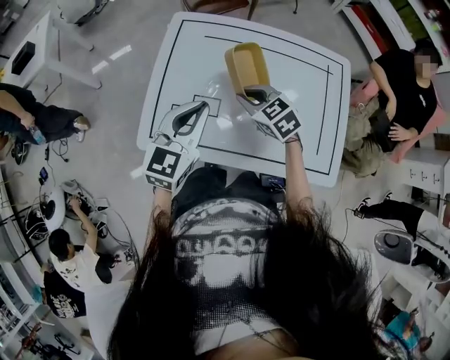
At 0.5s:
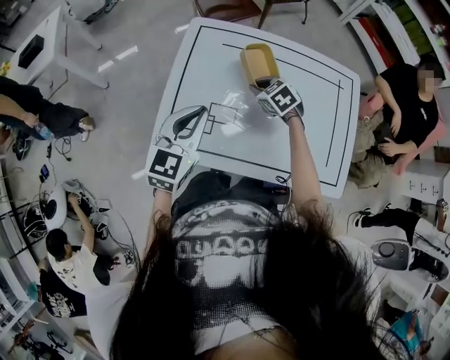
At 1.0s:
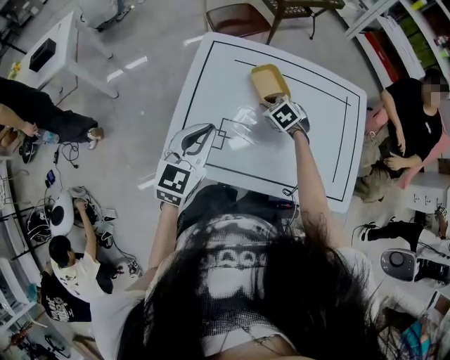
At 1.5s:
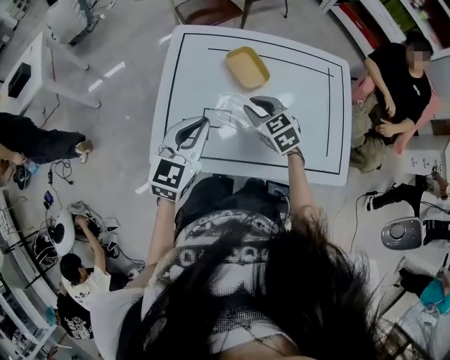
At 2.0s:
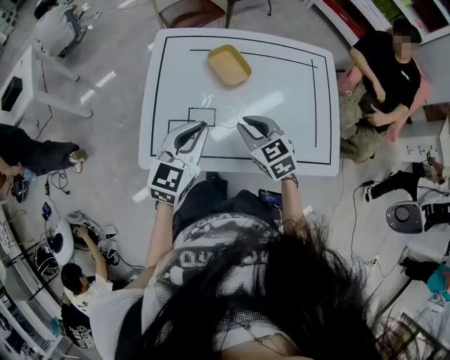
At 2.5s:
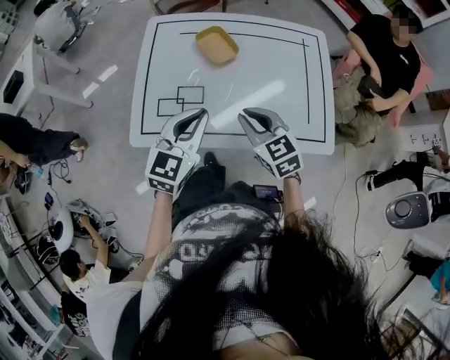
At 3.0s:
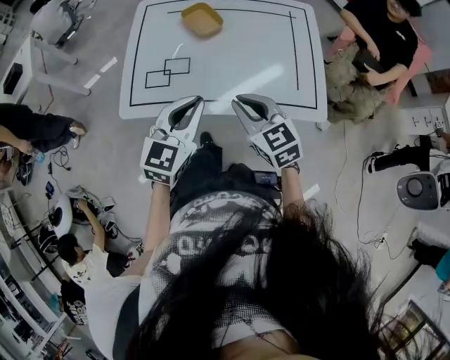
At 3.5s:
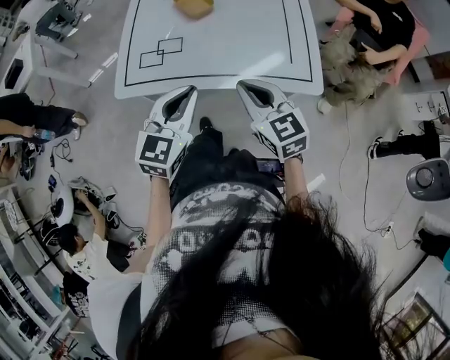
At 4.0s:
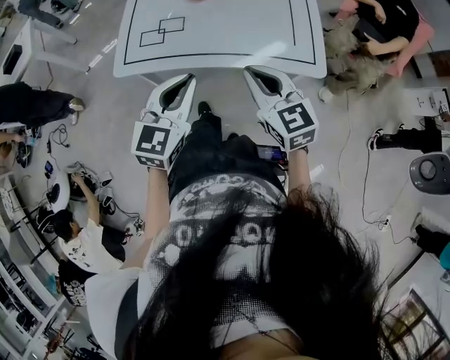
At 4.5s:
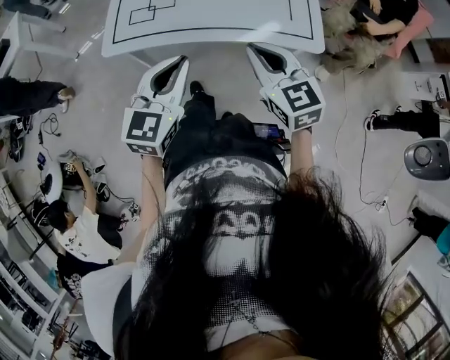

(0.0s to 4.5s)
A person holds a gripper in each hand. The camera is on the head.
0.0s - 2.0s: The right gripper travels backward by some 5 cm. Meanwhile the left gripper moves about 10 cm to the left and comes back.
2.0s - 4.5s: The right gripper travels backward and to the right by about 30 cm. The left gripper travels backward by approximately 30 cm.

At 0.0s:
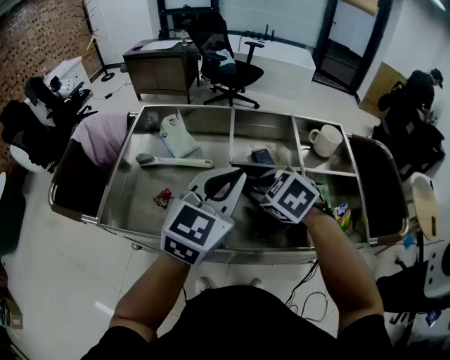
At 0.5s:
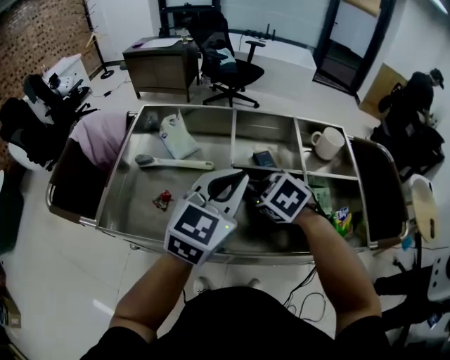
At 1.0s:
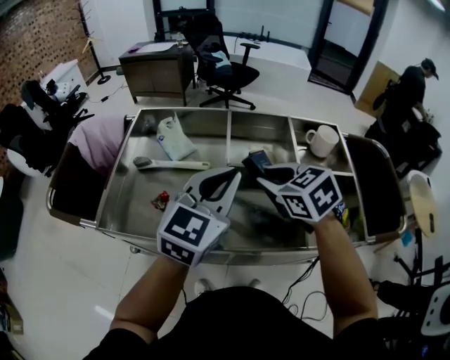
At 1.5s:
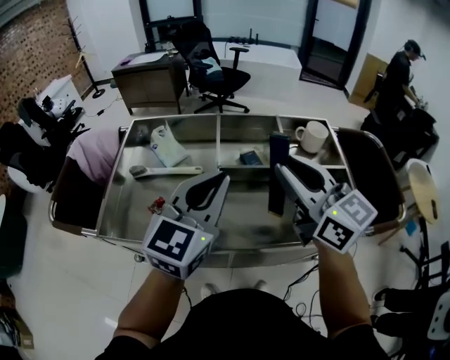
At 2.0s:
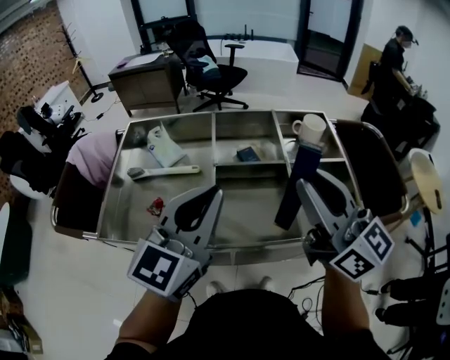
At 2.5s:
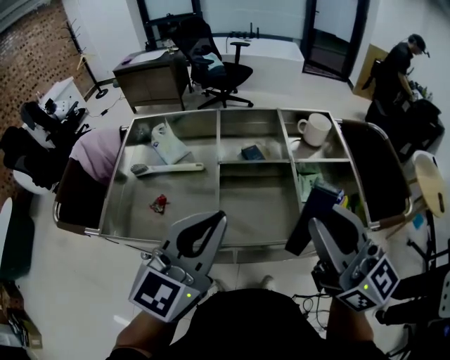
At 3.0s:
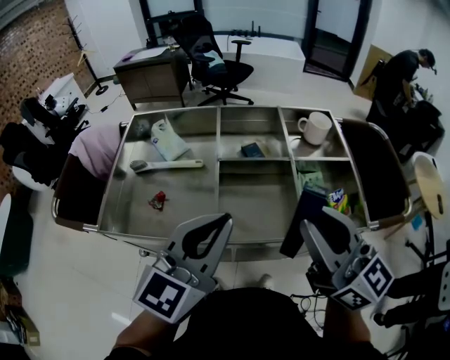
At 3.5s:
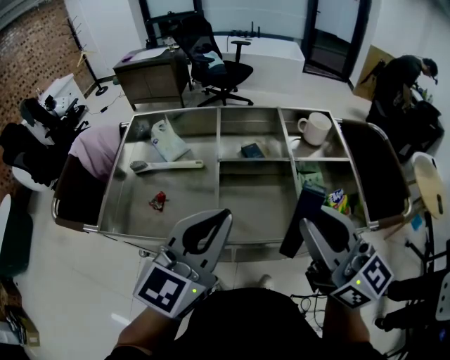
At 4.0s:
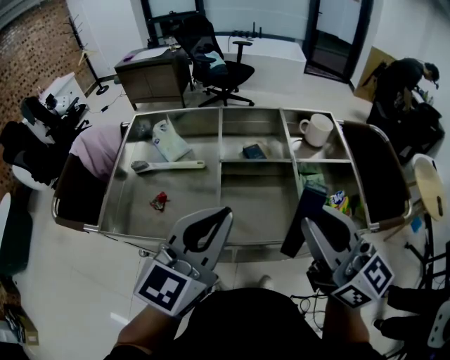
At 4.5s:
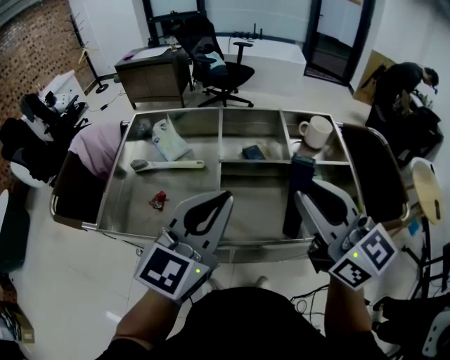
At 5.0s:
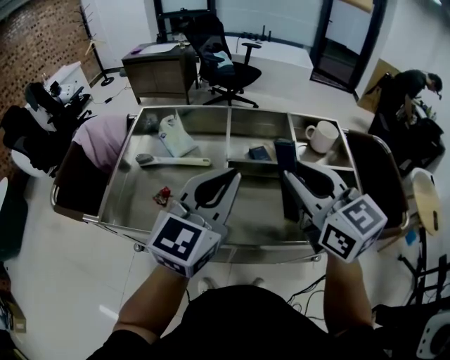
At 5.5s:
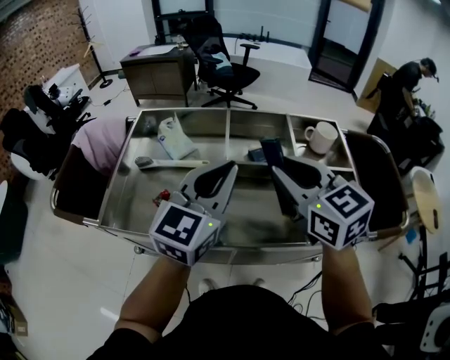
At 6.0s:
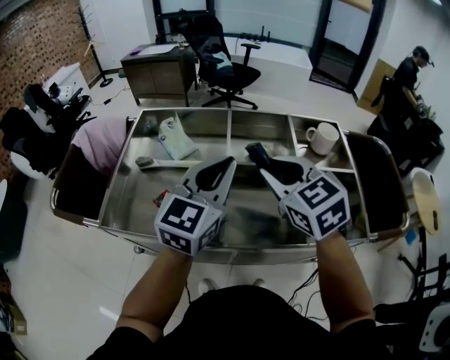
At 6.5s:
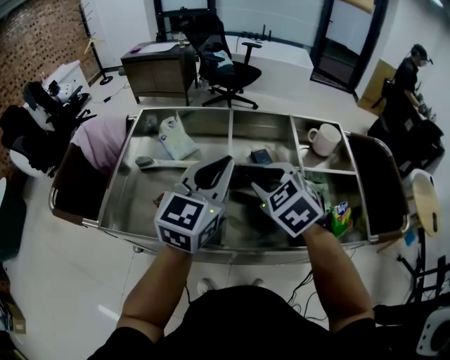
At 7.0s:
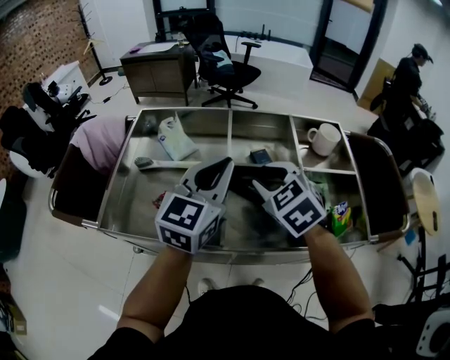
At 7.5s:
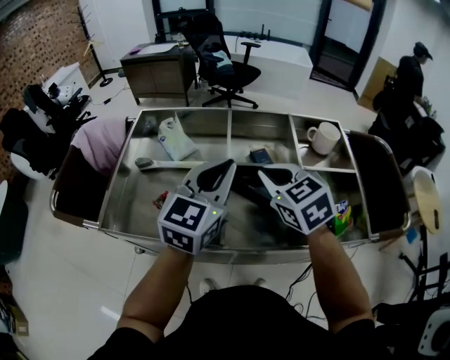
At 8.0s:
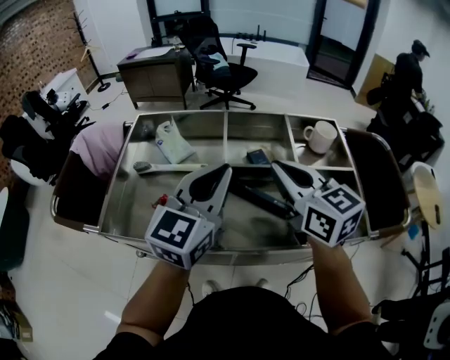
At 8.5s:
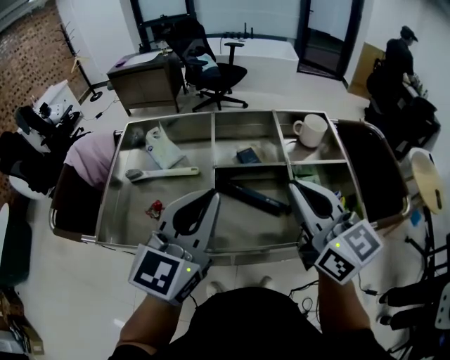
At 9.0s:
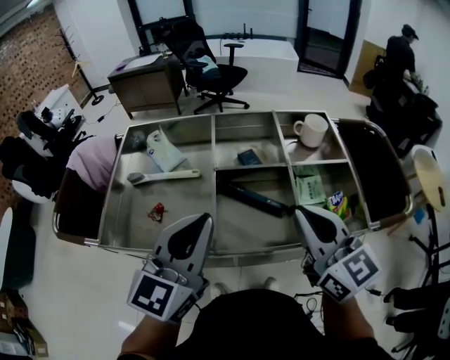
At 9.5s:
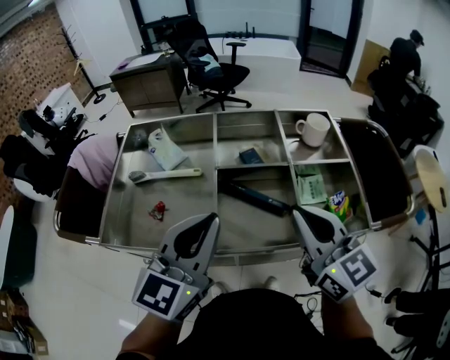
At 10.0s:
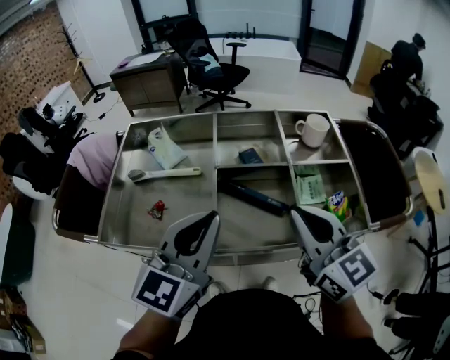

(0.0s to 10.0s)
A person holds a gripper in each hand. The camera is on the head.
0.0s - 2.0s: The right gripper shifts some 25 cm upward, backward and to the right, and tilts its fingers roughly 70 degrees upward. The left gripper travels backward and upward by approximately 10 cm.
2.0s - 4.0s: The right gripper moves approximately 5 cm.
4.0s - 6.0s: The right gripper shifts roughly 20 cm forward, to the left and downward, and tilts its fingers about 30 degrees downward. The left gripper is displaced forward by roughly 10 cm.
6.0s - 8.0s: The right gripper goes downward and returns, about 5 cm each way, changes its angle by about 30 degrees, and closes.
8.0s - 10.0s: The right gripper shifts about 10 cm backward and to the right. Meanwhile the left gripper moves backward, some 10 cm.

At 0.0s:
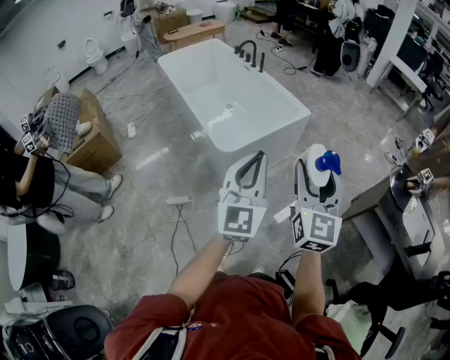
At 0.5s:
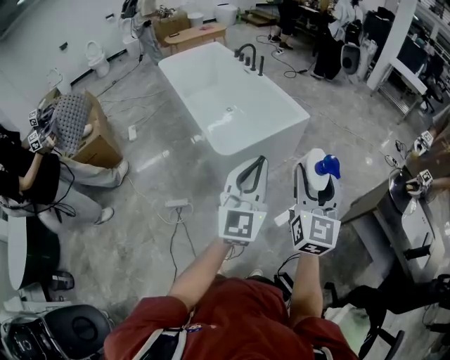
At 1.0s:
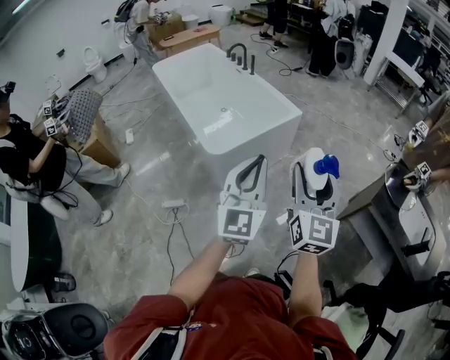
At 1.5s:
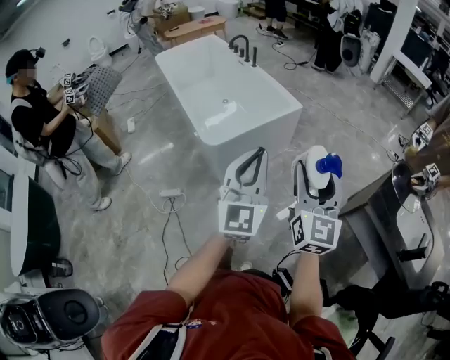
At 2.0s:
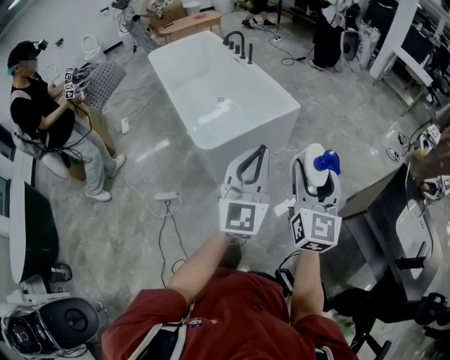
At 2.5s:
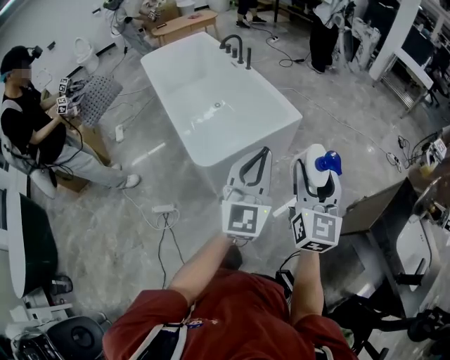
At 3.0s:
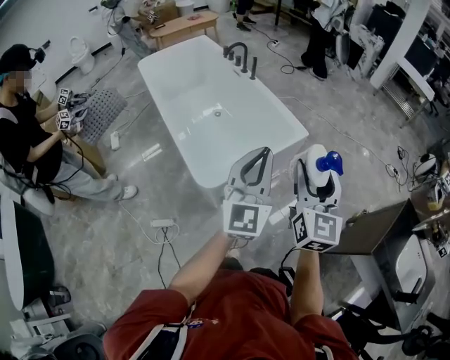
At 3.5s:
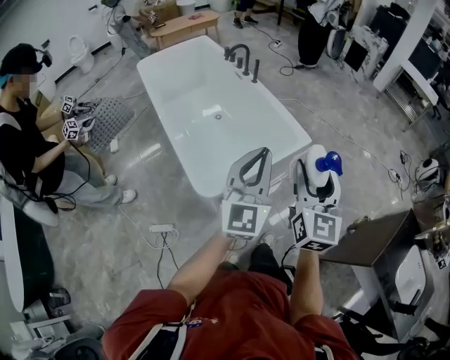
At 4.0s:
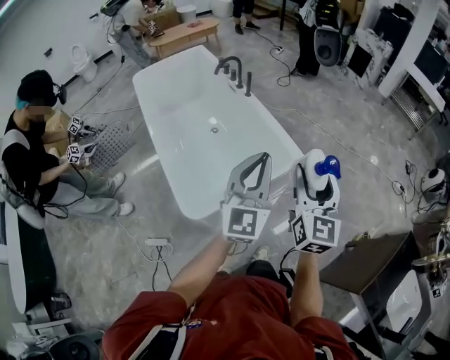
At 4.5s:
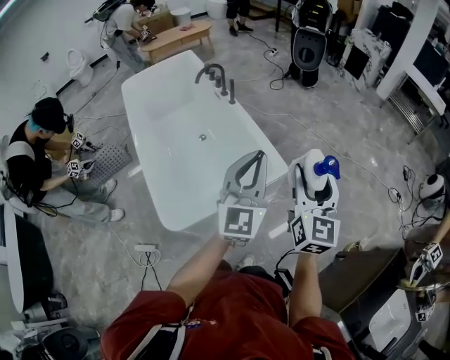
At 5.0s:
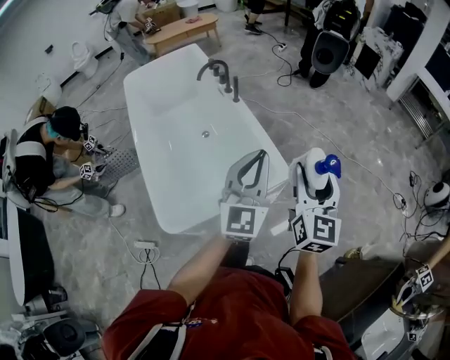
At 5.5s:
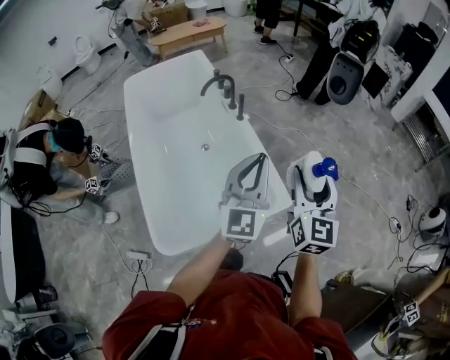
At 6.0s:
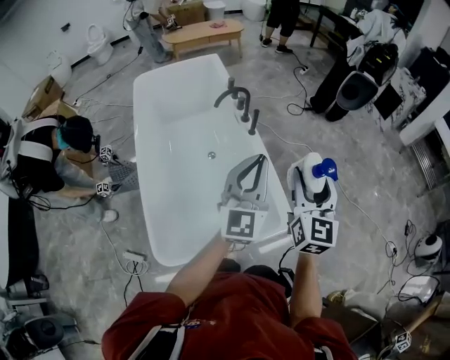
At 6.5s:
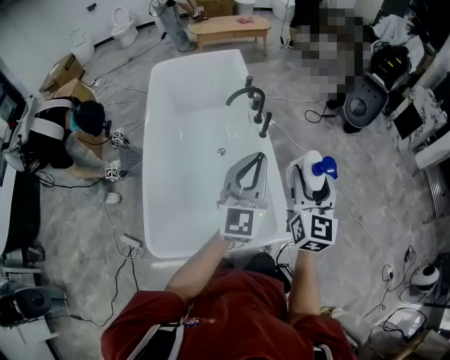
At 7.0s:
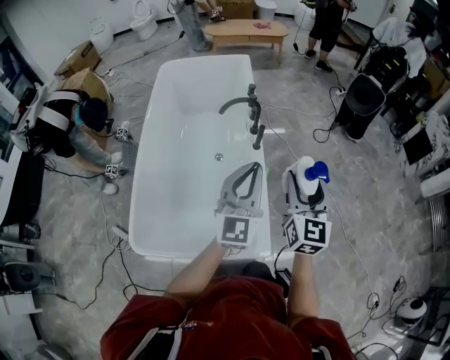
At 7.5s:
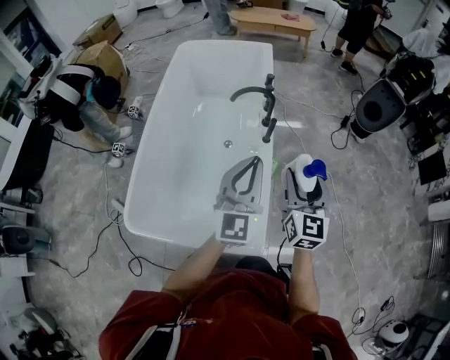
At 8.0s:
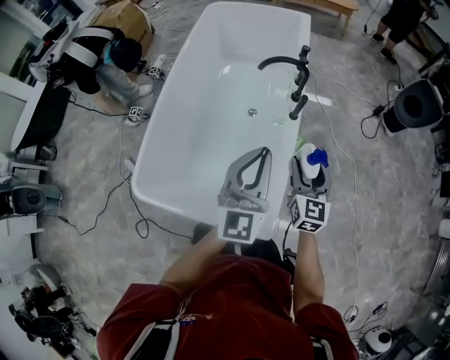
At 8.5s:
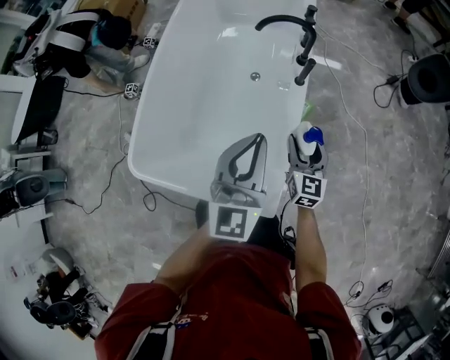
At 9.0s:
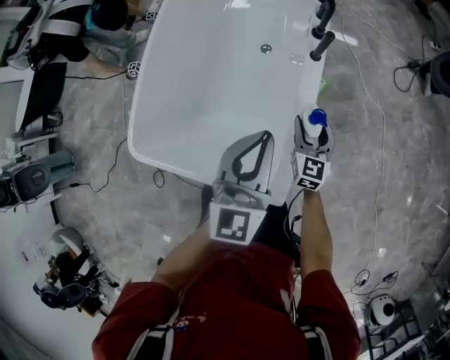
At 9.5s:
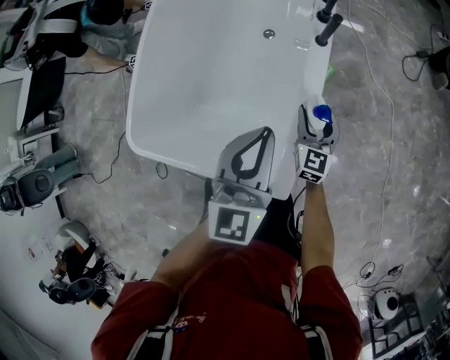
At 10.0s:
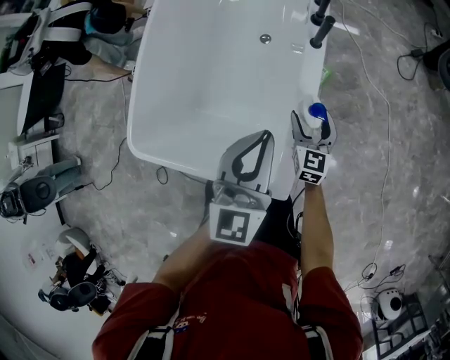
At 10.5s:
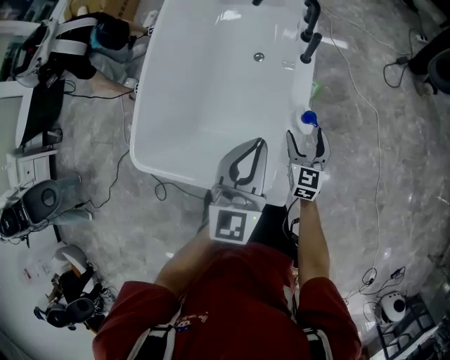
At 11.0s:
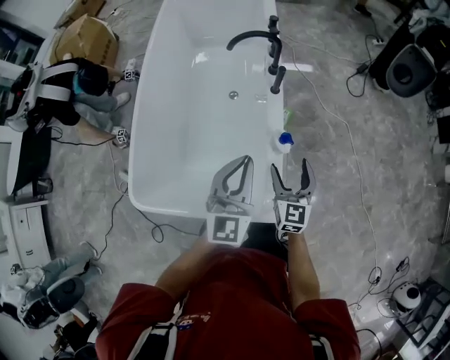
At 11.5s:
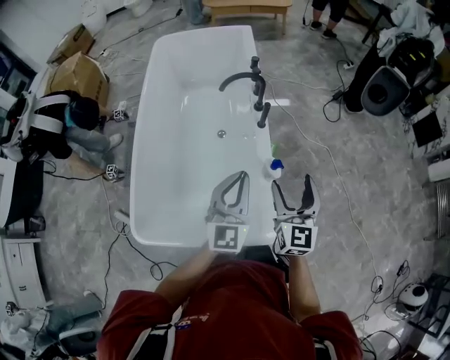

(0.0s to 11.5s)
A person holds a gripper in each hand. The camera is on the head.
0.0s - 2.0s: The grippers both shift to the right and forward by approximately 15 cm.
2.0s - 4.0s: The grippers both shift forward by roughly 40 cm.
4.0s - 6.0s: Both grippers travel together forward, approximately 35 cm.
6.0s - 7.5s: The left gripper ends up some 15 cm from where it was, and rotates some 30 degrees; the right gripper ends up about 20 cm from where it was, and turns by approximately 30 degrees.
7.5s - 9.5s: The right gripper travels downward by some 35 cm. The left gripper goes roughly 20 cm downward.
9.5s - 11.5s: The right gripper heads upward, covering some 30 cm. The left gripper moves upward, some 10 cm.

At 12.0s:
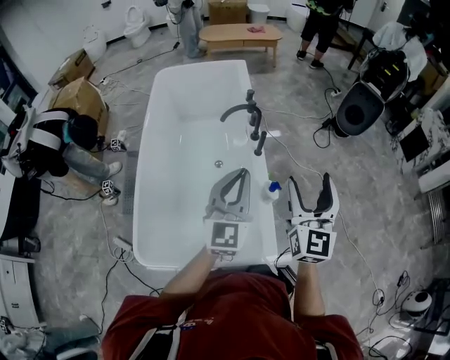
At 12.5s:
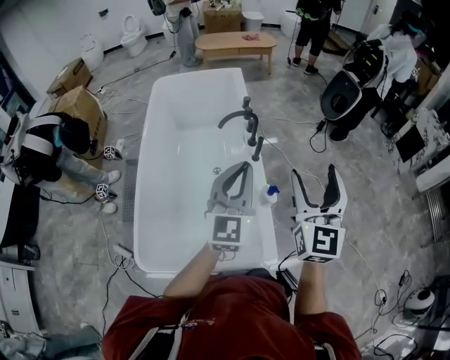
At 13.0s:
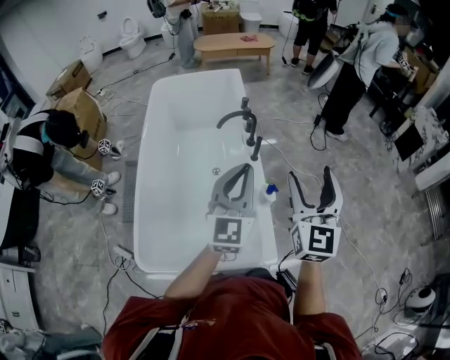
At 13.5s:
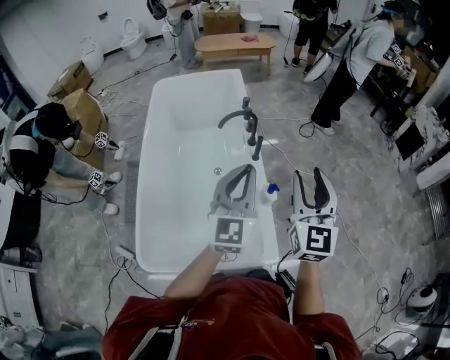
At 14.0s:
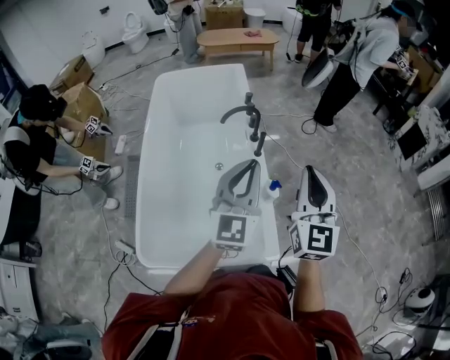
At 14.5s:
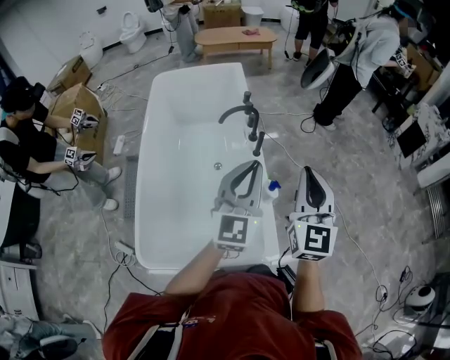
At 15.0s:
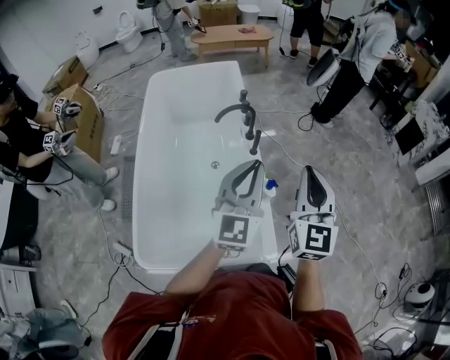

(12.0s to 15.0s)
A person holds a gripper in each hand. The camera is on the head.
12.0s - 13.5s: The right gripper closes up.
13.5s - 15.0s: The right gripper closes its fingers.
